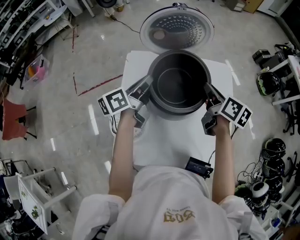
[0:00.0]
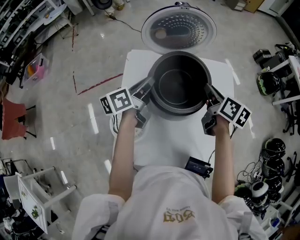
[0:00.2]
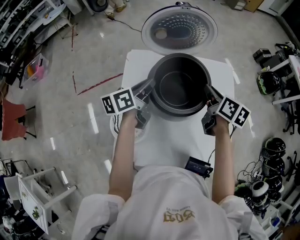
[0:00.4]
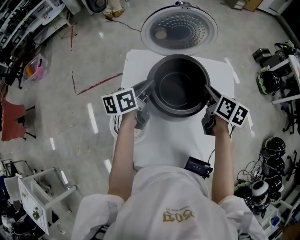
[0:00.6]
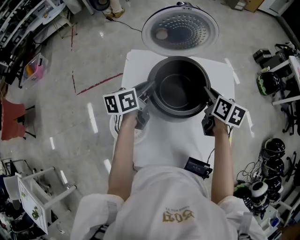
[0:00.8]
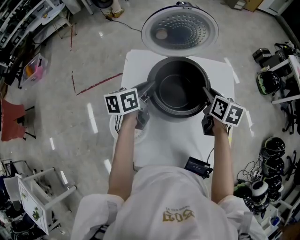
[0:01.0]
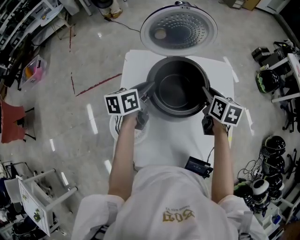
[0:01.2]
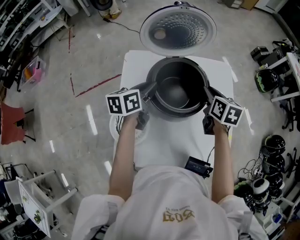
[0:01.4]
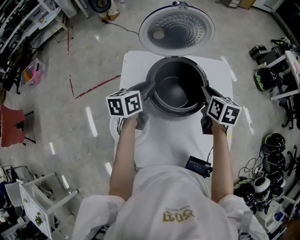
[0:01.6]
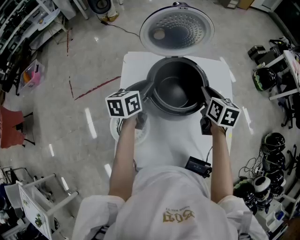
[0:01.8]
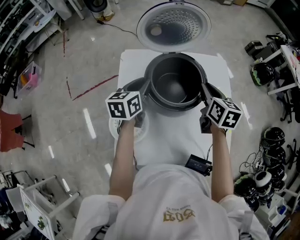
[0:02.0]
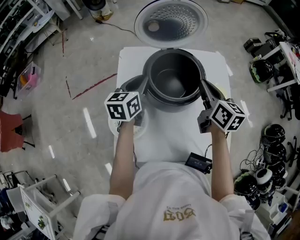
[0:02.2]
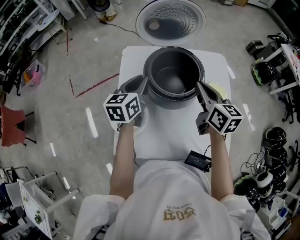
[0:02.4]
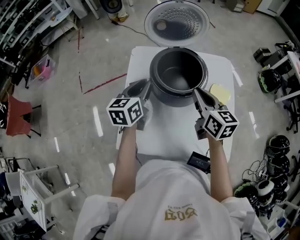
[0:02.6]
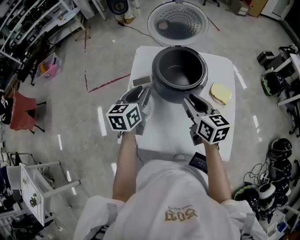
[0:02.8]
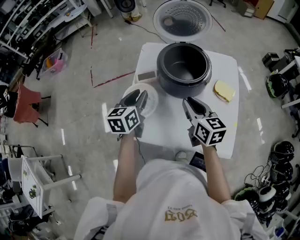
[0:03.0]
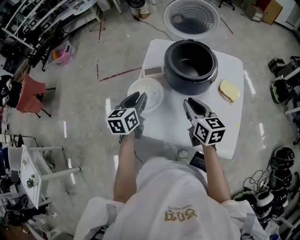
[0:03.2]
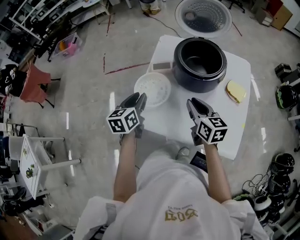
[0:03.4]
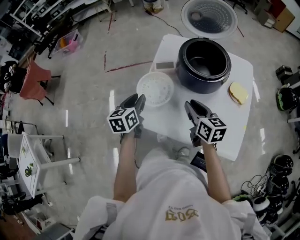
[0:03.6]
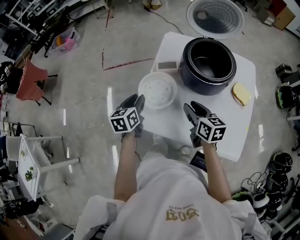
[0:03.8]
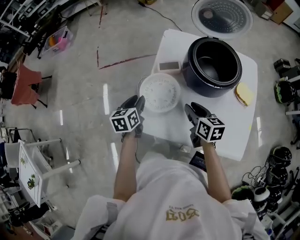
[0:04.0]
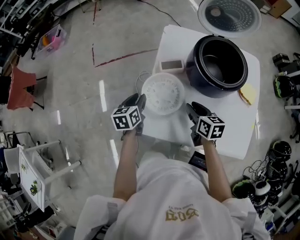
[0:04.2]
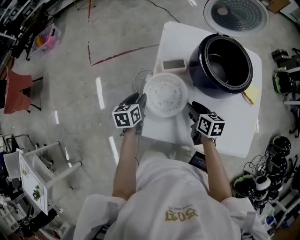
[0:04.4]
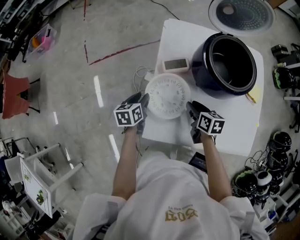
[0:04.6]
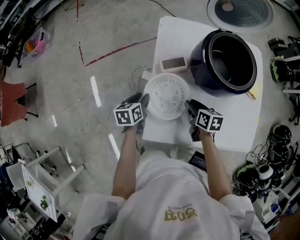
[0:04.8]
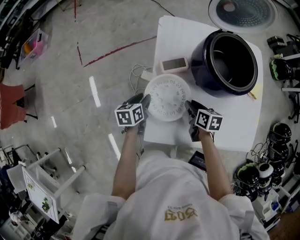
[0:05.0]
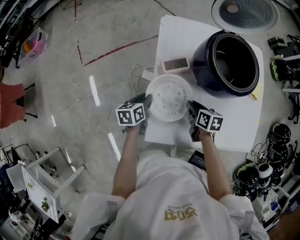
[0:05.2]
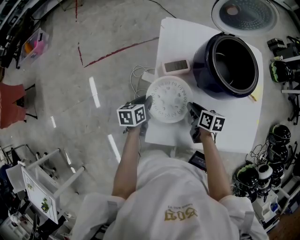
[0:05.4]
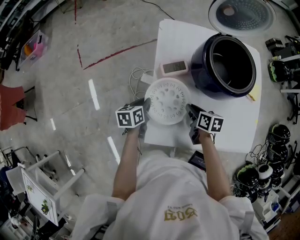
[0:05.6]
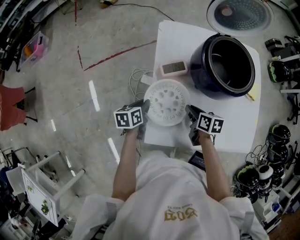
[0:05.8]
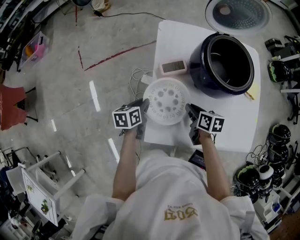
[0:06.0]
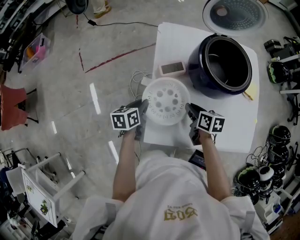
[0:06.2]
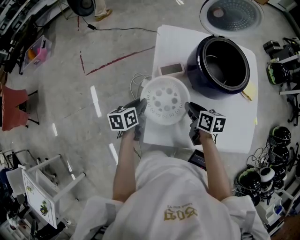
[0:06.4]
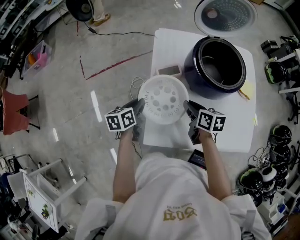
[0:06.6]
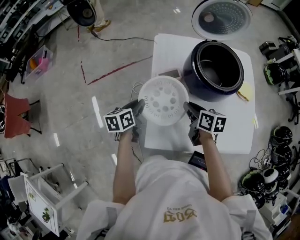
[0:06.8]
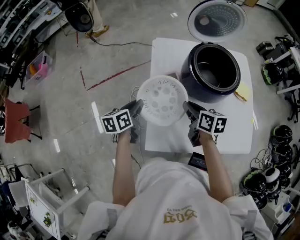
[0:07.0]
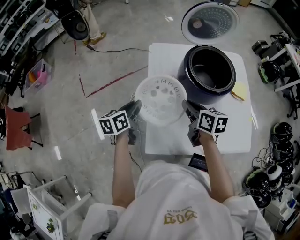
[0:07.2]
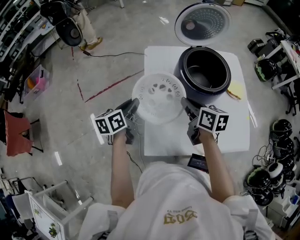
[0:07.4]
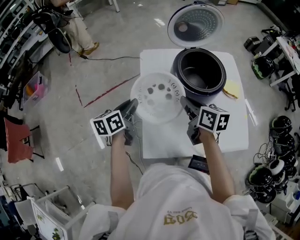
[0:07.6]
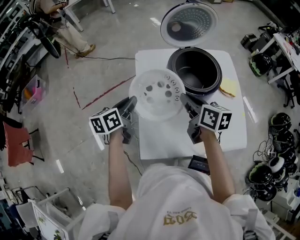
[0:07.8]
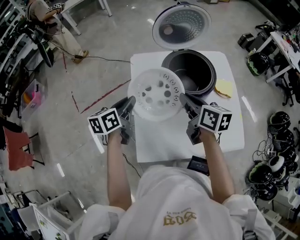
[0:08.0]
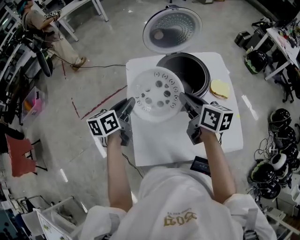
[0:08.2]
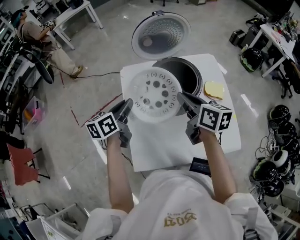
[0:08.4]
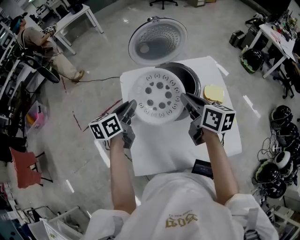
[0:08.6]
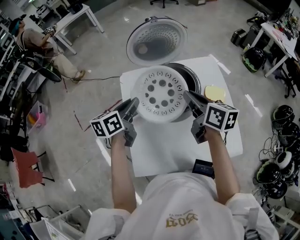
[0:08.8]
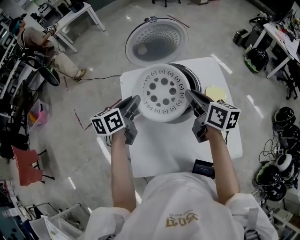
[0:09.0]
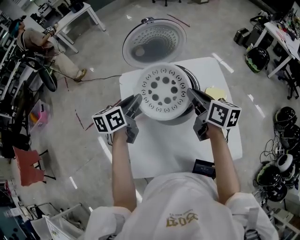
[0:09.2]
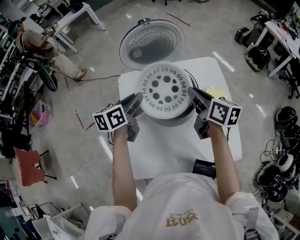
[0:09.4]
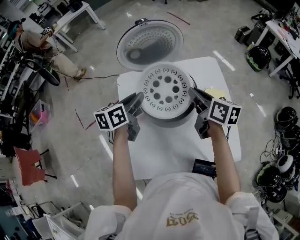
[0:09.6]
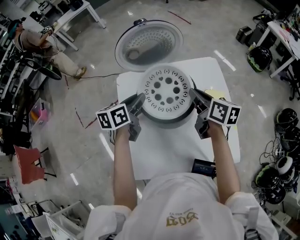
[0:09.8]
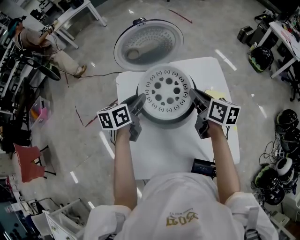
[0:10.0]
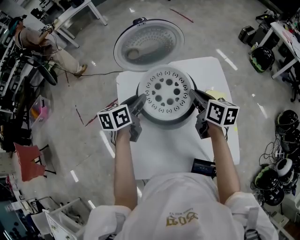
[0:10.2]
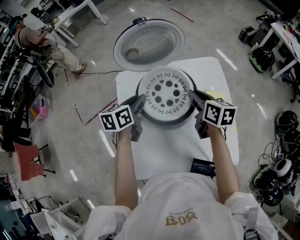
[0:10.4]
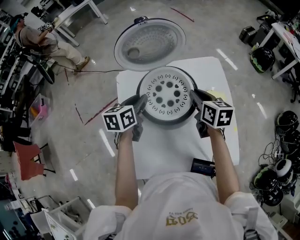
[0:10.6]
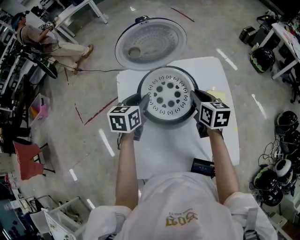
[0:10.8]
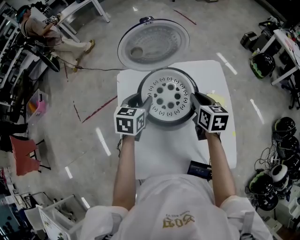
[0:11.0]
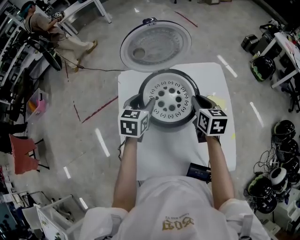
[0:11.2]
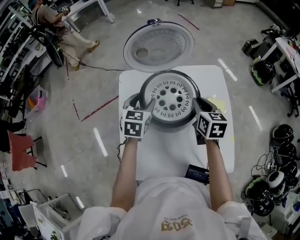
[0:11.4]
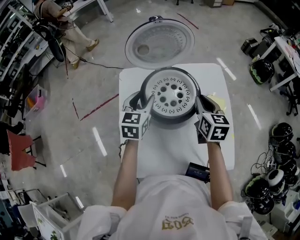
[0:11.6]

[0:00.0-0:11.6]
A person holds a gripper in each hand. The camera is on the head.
0.0 to 1.4 s: Both grippers travel together downward, approximately 5 cm. The left gripper rotates roughly 20 degrees. Meanwhile the right gripper turns by about 20 degrees.
1.4 to 2.8 s: The right gripper shifts roughly 20 cm backward and to the left, and rotates approximately 30 degrees; the left gripper travels backward by approximately 15 cm, and turns by some 20 degrees.
2.8 to 4.4 s: The left gripper heads to the left and downward, covering roughly 30 cm, and rotates about 20 degrees, while the right gripper is displaced downward and to the left by roughly 25 cm, and rotates roughly 30 degrees.
4.4 to 5.8 s: The right gripper closes.
5.8 to 7.2 s: Both grippers move upward, roughly 15 cm.
7.2 to 8.8 s: The grippers both shift to the right, upward and forward by approximately 25 cm.
8.8 to 10.2 s: The right gripper shifts some 10 cm downward and forward. Meanwhile the left gripper shifts some 5 cm forward.
10.2 to 11.6 s: The right gripper rotates approximately 30 degrees. The left gripper swivels roughly 30 degrees, and opens.

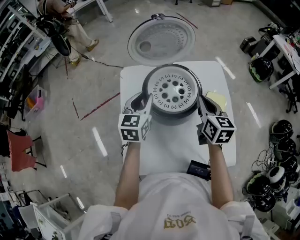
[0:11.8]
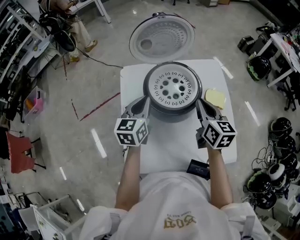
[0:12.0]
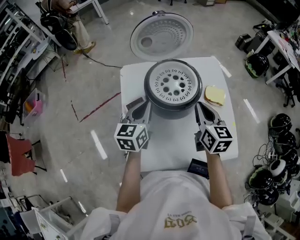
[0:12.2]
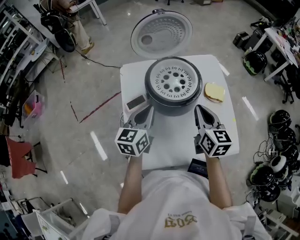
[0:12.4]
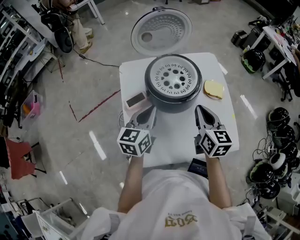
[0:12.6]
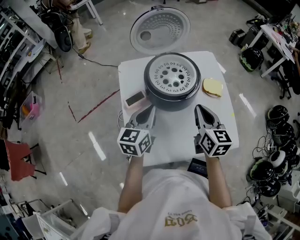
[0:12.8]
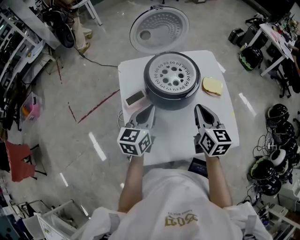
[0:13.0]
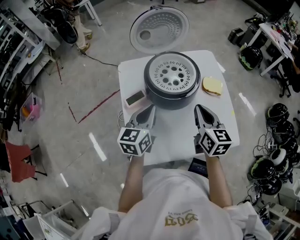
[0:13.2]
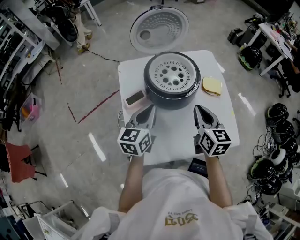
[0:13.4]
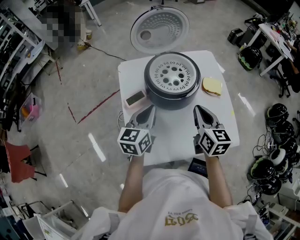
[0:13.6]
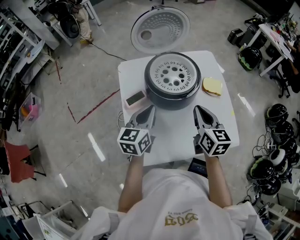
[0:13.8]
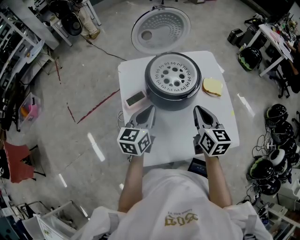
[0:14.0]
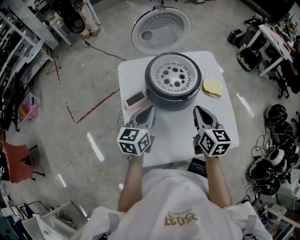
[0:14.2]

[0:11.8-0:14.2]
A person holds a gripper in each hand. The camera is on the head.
11.8 to 13.0 s: Both grippers travel together backward, about 10 cm. The left gripper closes up.
13.0 to 14.2 s: Both grippers stay about where they are.

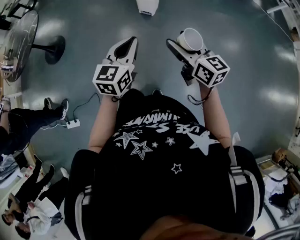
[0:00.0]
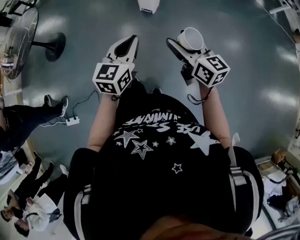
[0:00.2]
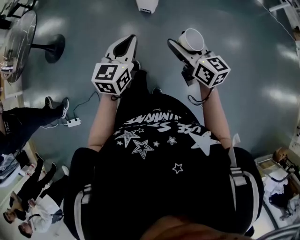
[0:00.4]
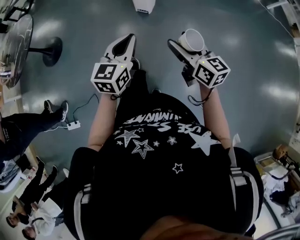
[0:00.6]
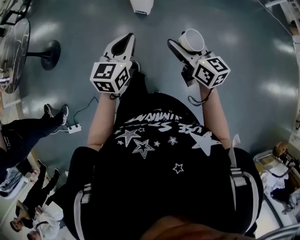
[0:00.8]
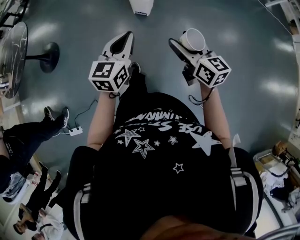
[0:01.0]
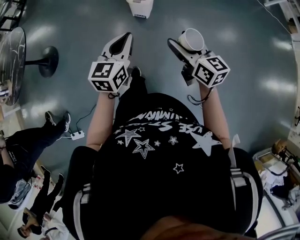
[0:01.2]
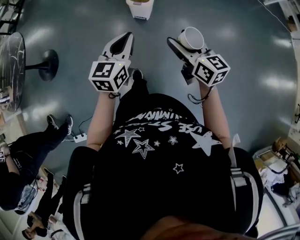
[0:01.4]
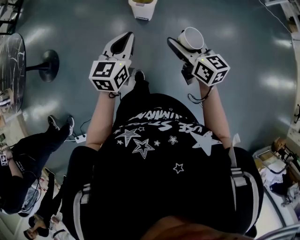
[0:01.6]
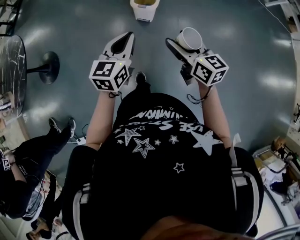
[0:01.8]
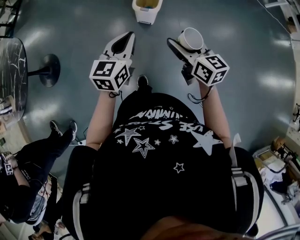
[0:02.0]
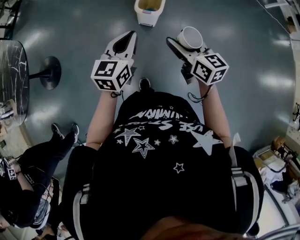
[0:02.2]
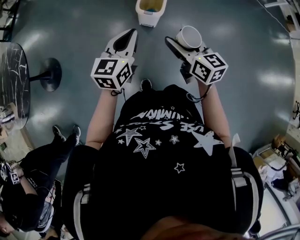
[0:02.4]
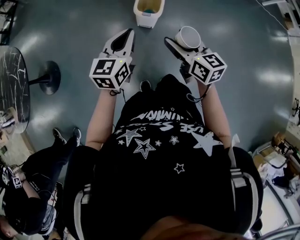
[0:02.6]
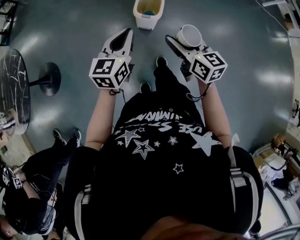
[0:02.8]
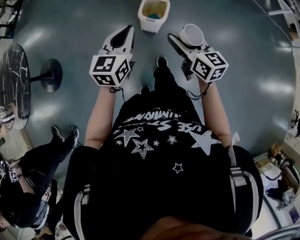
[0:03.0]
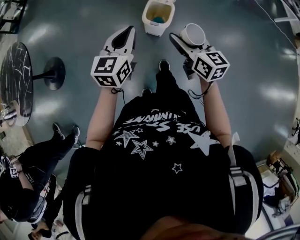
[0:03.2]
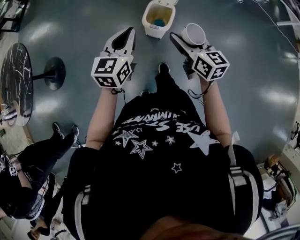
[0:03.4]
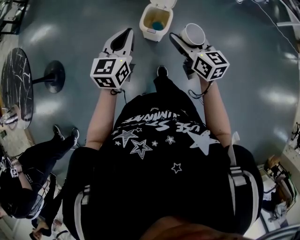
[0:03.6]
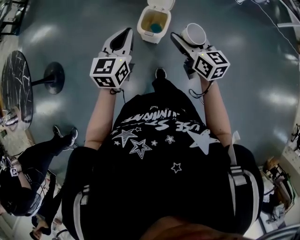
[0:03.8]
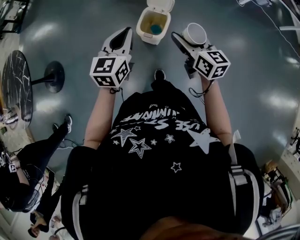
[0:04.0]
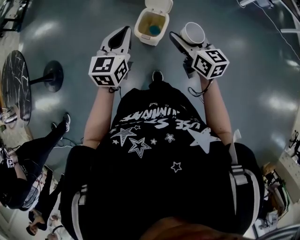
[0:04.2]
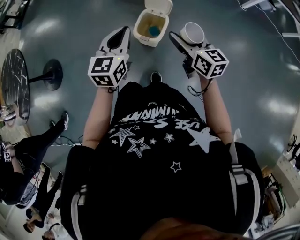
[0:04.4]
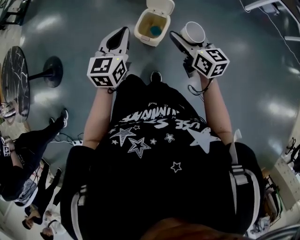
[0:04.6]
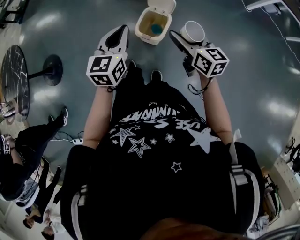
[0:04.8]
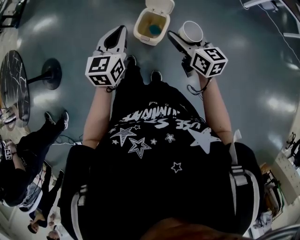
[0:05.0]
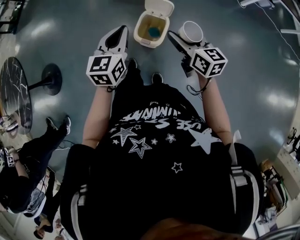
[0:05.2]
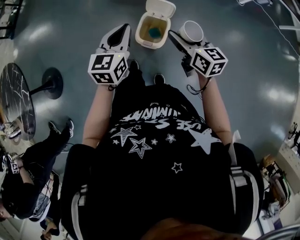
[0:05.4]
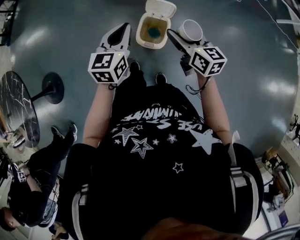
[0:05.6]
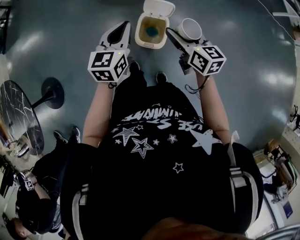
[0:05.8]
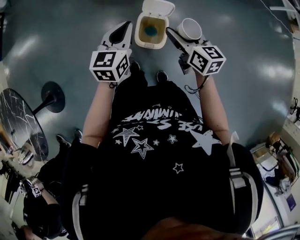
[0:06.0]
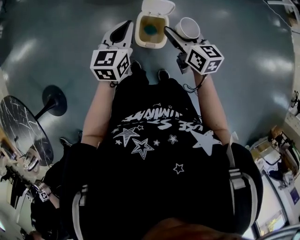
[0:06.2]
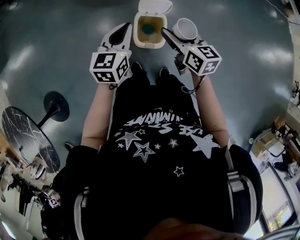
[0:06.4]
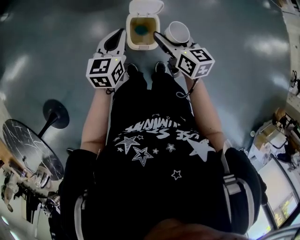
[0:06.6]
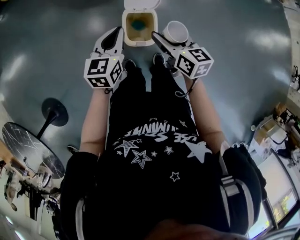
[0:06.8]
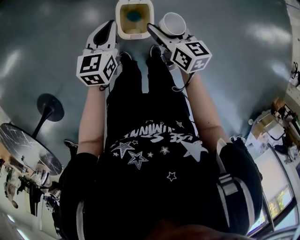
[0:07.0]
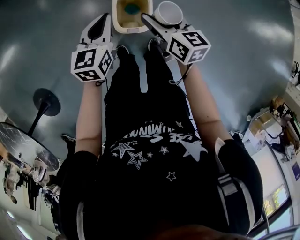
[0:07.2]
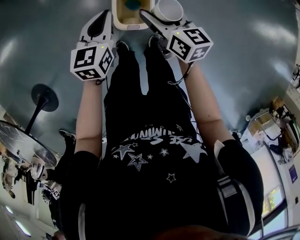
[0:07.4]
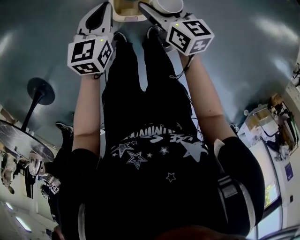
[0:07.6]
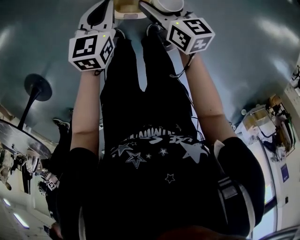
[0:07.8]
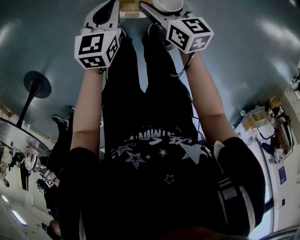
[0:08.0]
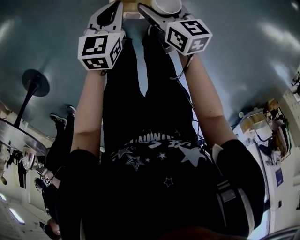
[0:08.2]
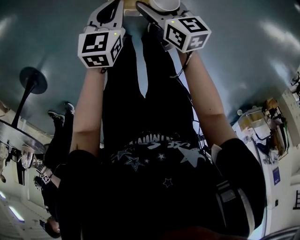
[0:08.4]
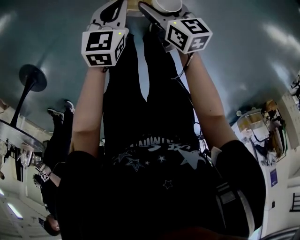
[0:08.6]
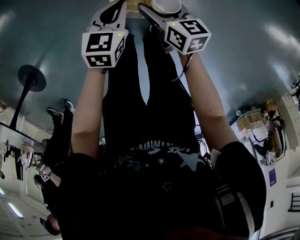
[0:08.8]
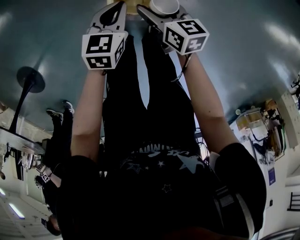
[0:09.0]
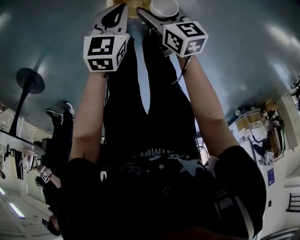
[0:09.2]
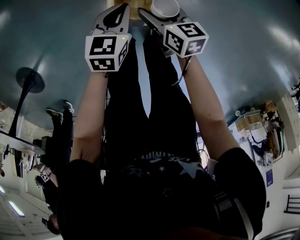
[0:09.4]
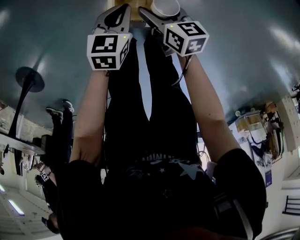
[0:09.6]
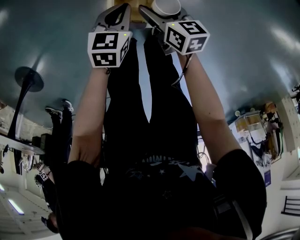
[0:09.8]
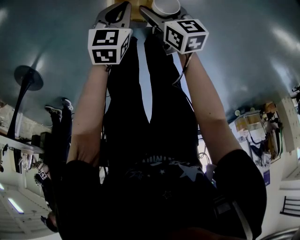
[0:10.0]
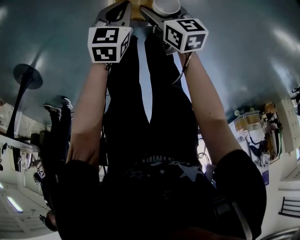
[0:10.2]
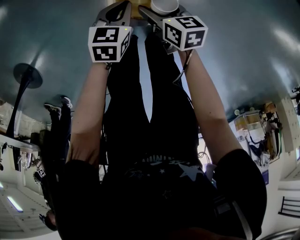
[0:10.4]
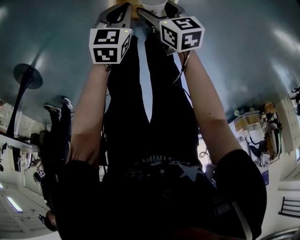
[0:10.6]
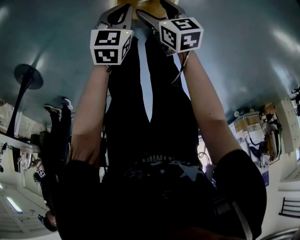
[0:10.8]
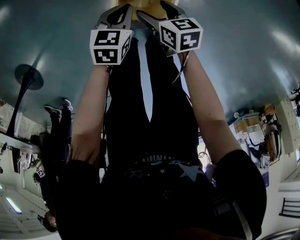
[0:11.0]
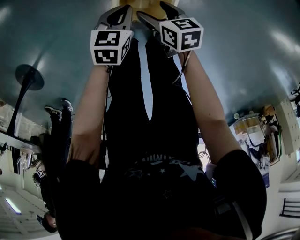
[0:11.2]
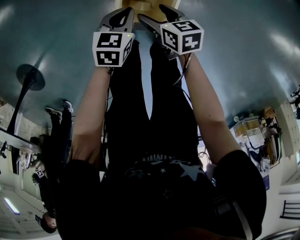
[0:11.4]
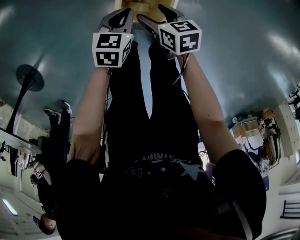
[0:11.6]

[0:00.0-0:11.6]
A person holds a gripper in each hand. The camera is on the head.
0.0 to 1.4 s: The grippers both shift forward by approximately 20 cm.
1.4 to 2.8 s: The grippers both shift forward and to the left by roughly 20 cm.
2.8 to 4.4 s: The grippers both shift forward and to the right by about 25 cm.
4.4 to 5.8 s: The left gripper shifts some 15 cm forward, while the right gripper heads forward and to the left, covering about 10 cm.
5.8 to 7.2 s: The left gripper shifts about 15 cm downward and forward; the right gripper moves downward, approximately 15 cm.
7.2 to 8.8 s: The grippers both shift downward by some 15 cm.
8.8 to 10.2 s: Both grippers move downward, approximately 10 cm.
10.2 to 11.6 s: The grippers stay close to where they were, moving slightly.
